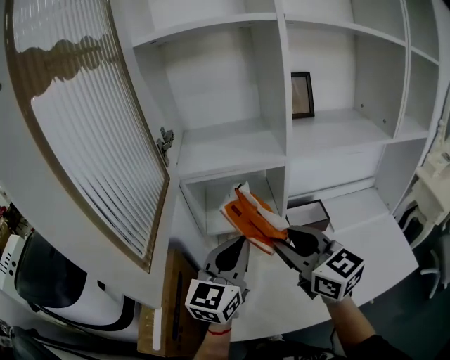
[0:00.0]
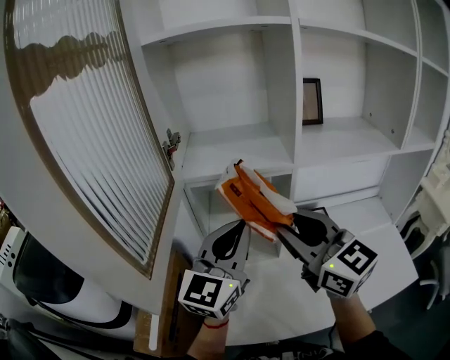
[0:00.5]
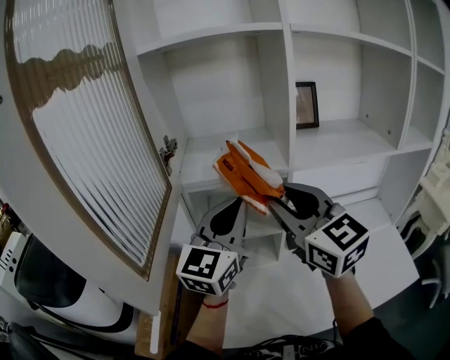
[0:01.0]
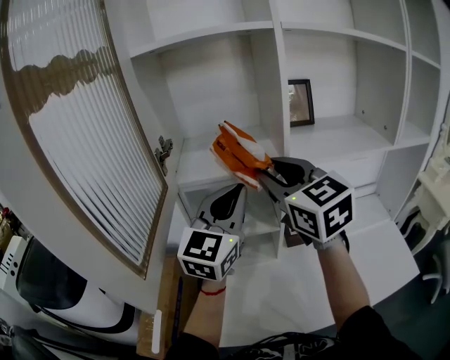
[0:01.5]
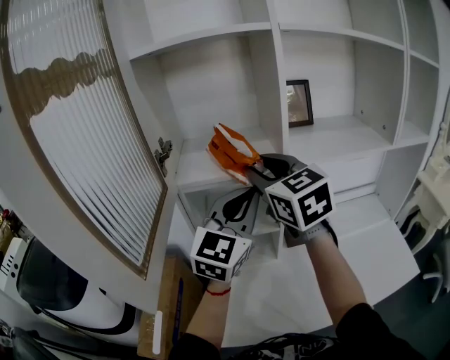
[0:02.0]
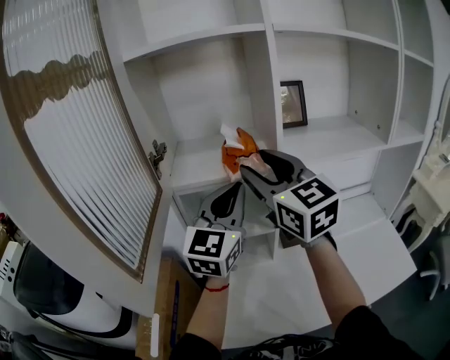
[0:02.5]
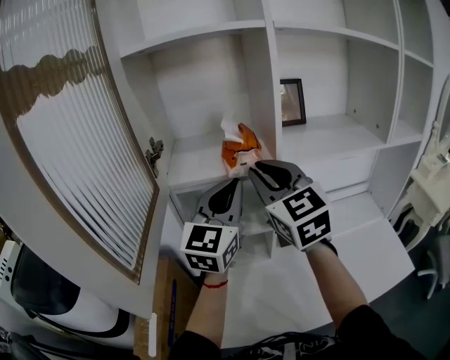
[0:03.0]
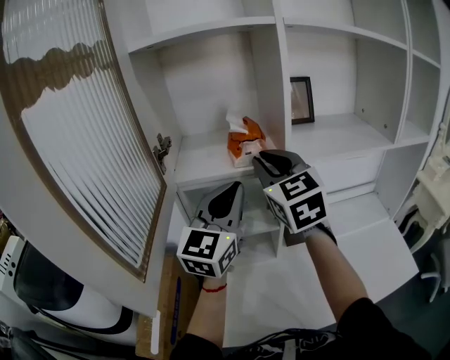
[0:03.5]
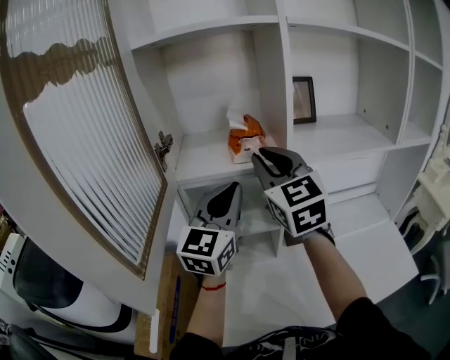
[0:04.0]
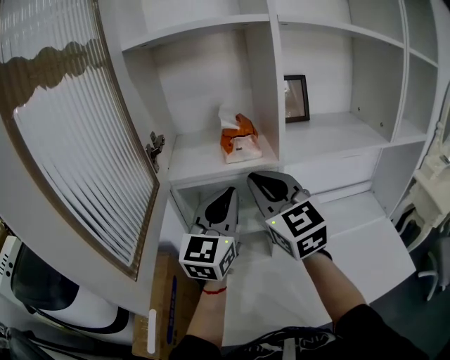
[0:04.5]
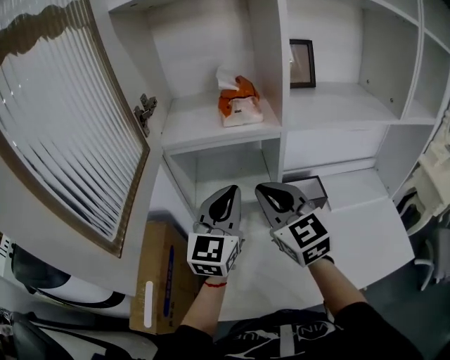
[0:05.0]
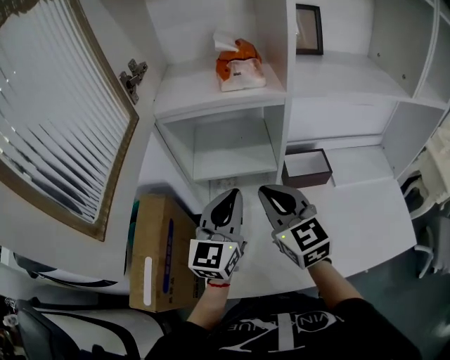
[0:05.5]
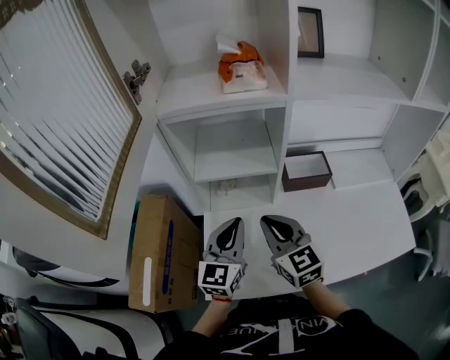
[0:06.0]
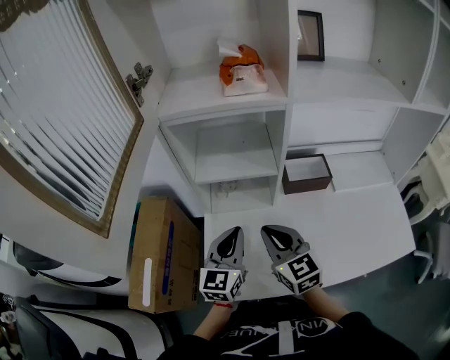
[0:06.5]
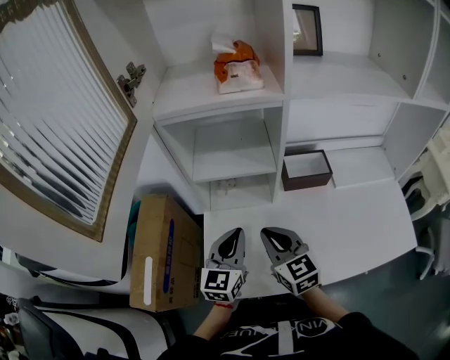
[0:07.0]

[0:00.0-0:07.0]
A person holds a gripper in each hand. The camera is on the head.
0:00.0 to 0:02.0: The left gripper moves upward, forward and to the right, about 15 cm. The right gripper moves forward and upward, some 20 cm.
0:02.0 to 0:03.5: The grippers stay close to where they were, moving slightly.
0:03.5 to 0:05.0: The left gripper goes approximately 10 cm downward. The right gripper goes approximately 15 cm downward and backward.
0:05.0 to 0:07.0: The two grippers go some 20 cm downward and backward.

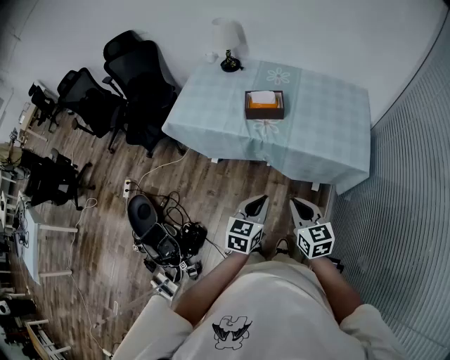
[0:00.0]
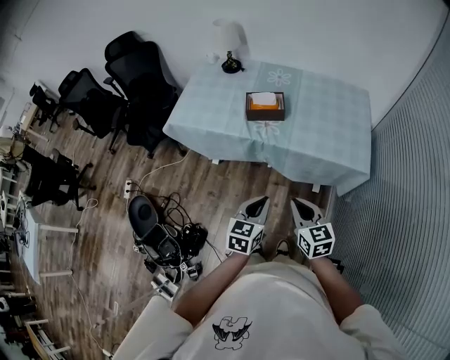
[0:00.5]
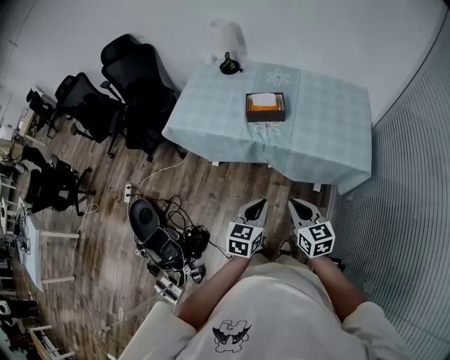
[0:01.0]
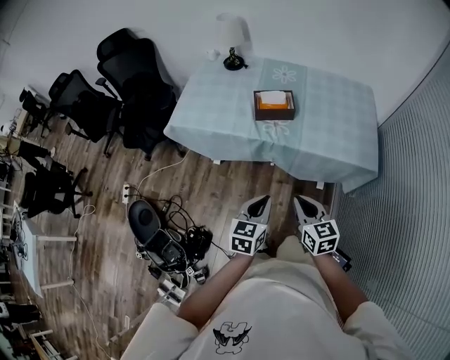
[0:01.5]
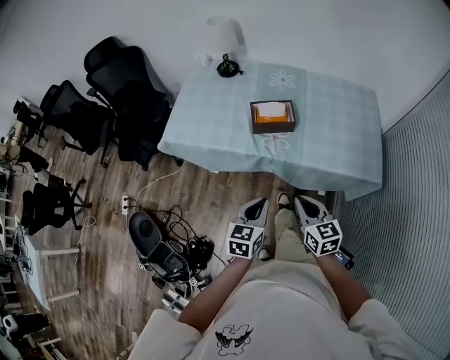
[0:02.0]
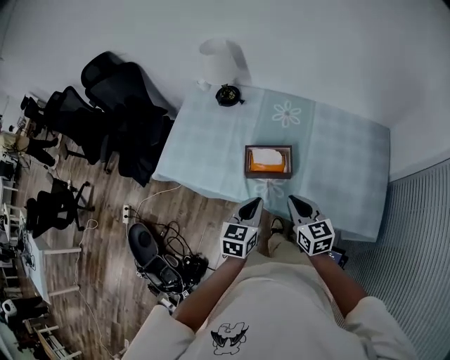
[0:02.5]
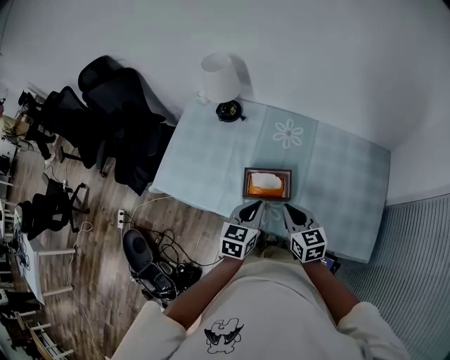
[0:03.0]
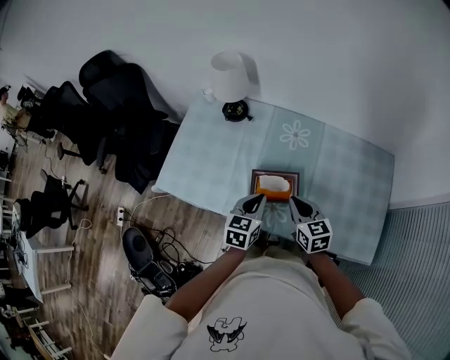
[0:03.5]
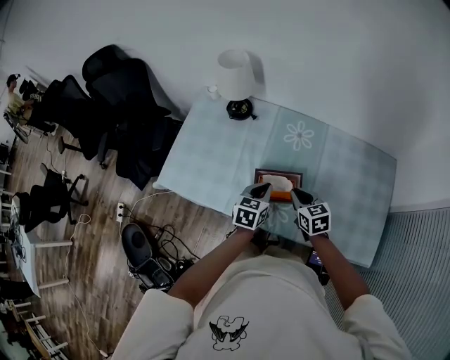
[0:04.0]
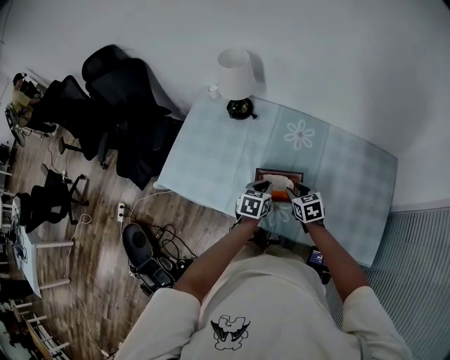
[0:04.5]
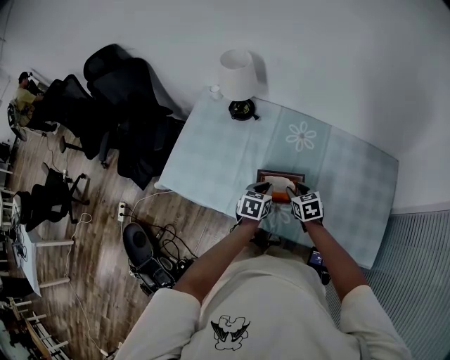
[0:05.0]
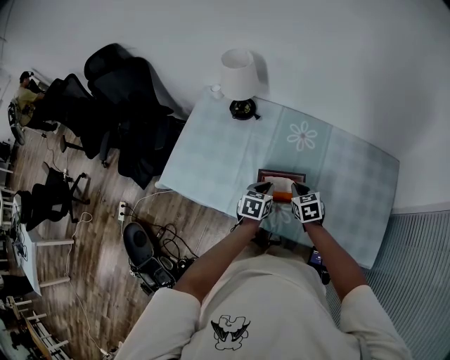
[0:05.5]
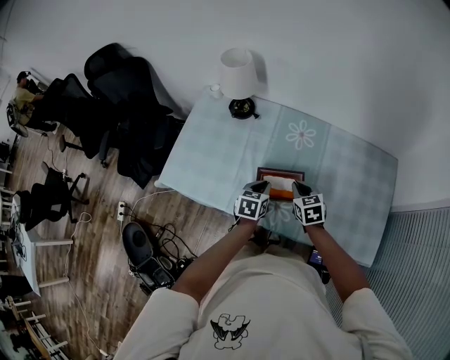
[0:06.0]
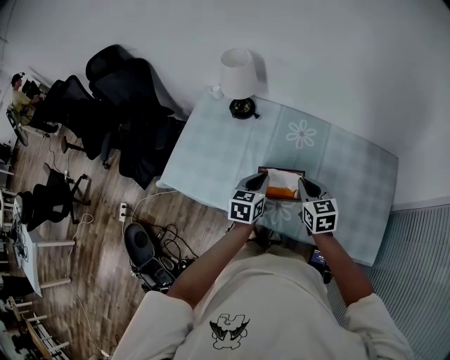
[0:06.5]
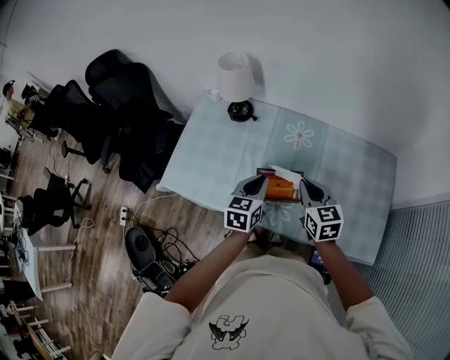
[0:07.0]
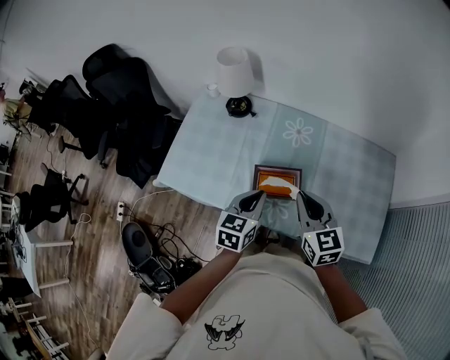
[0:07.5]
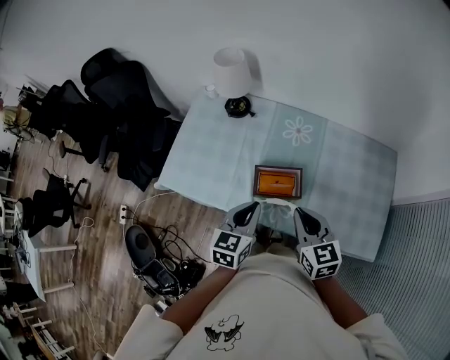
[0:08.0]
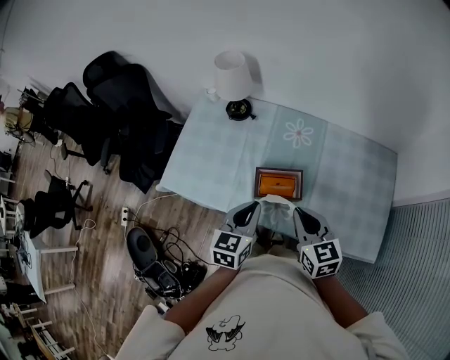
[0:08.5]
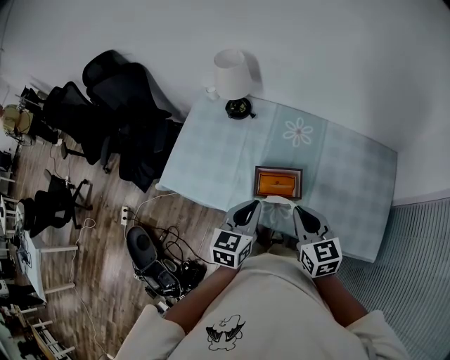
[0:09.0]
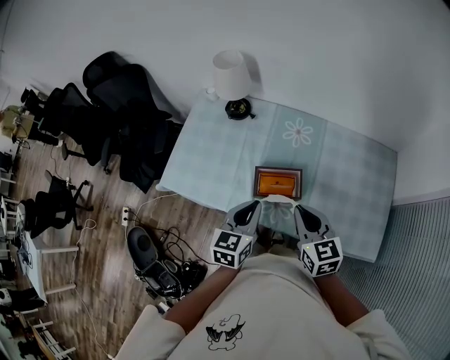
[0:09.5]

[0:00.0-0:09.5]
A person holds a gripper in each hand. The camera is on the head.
0:00.0 to 0:02.0: Both grippers travel together forward and to the left, about 15 cm.
0:02.0 to 0:04.0: The grippers both shift forward by about 35 cm.
0:04.0 to 0:05.5: Both grippers move downward, some 5 cm. The right gripper opens, then closes again.
0:05.5 to 0:07.5: The left gripper moves upward and backward, approximately 15 cm. The right gripper is displaced upward by roughly 20 cm, and changes its angle by some 30 degrees.
0:07.5 to 0:09.5: There are only small adjustments of the grippers.

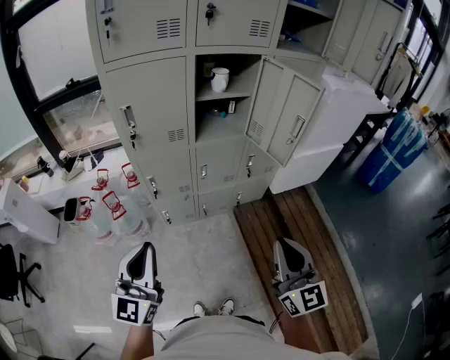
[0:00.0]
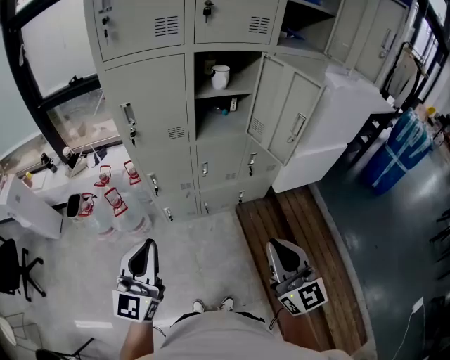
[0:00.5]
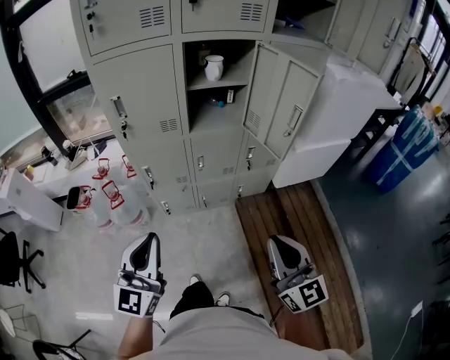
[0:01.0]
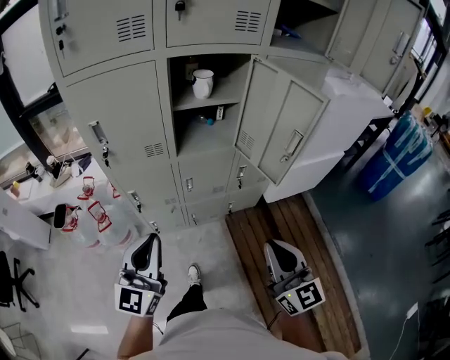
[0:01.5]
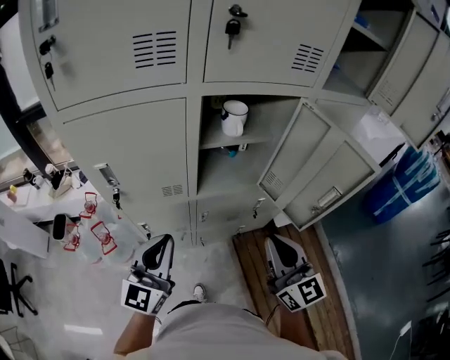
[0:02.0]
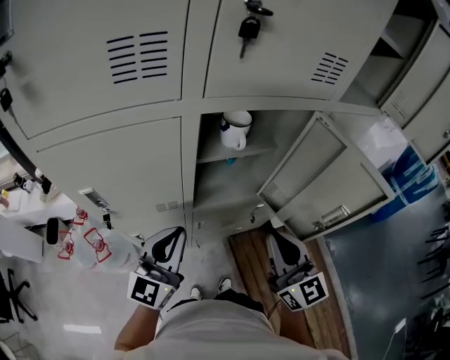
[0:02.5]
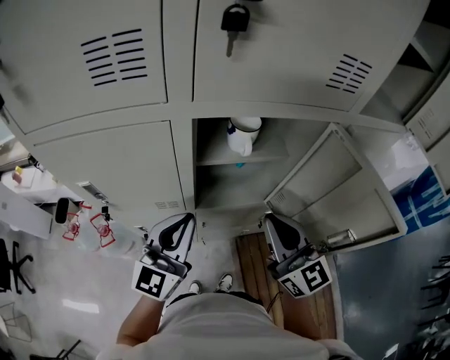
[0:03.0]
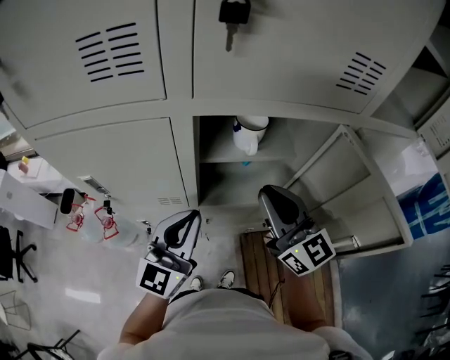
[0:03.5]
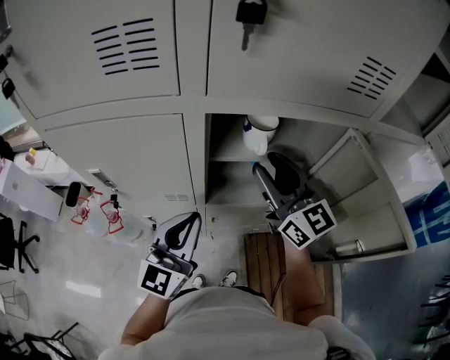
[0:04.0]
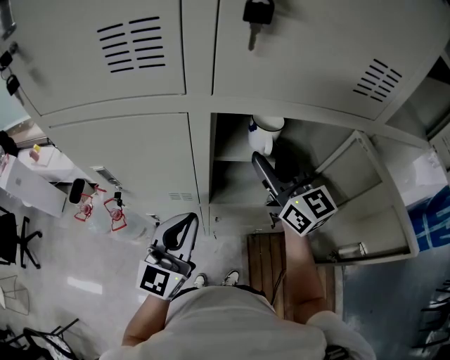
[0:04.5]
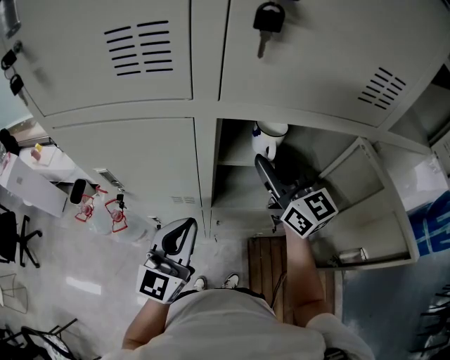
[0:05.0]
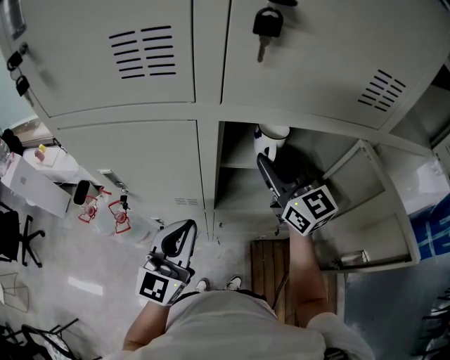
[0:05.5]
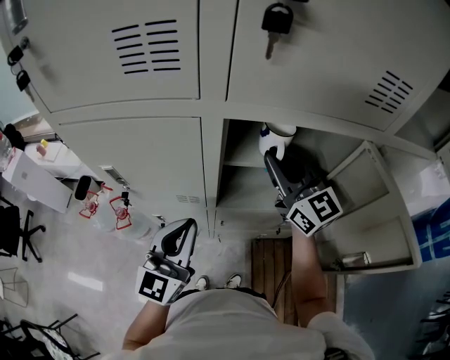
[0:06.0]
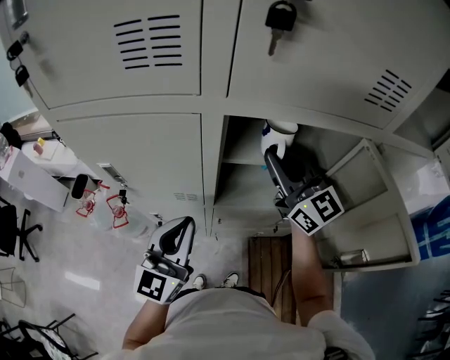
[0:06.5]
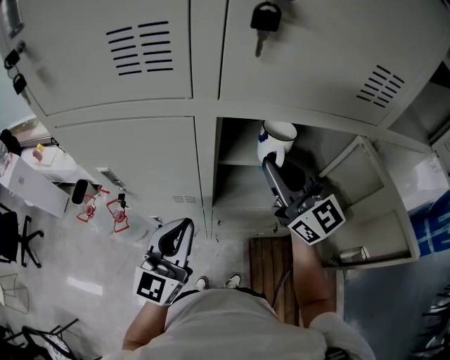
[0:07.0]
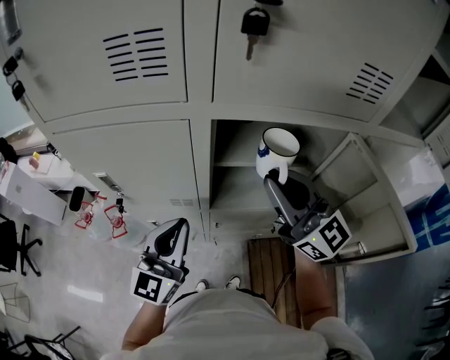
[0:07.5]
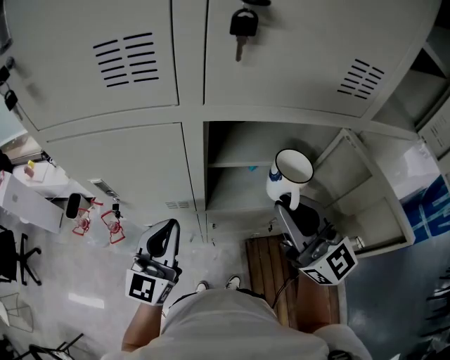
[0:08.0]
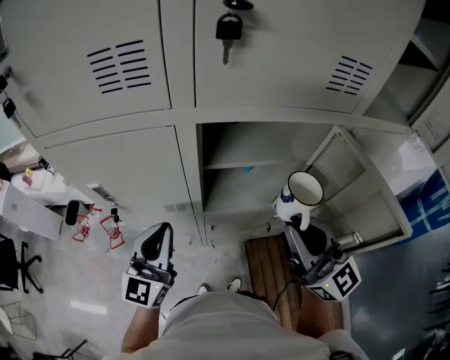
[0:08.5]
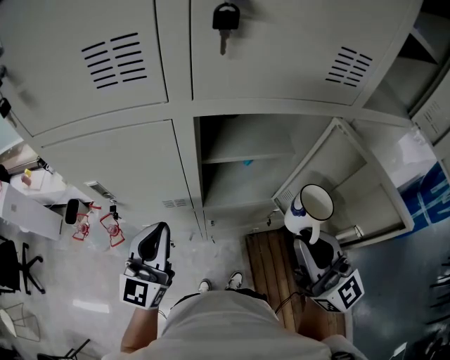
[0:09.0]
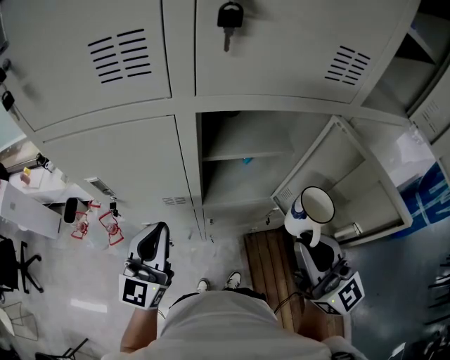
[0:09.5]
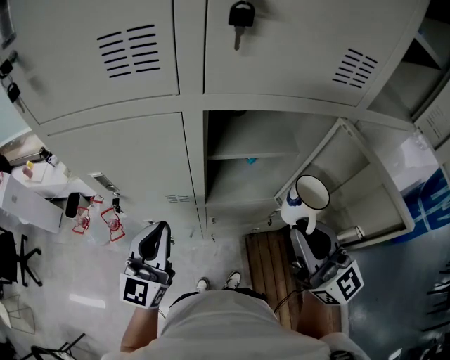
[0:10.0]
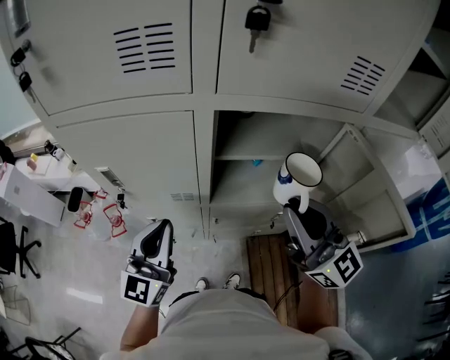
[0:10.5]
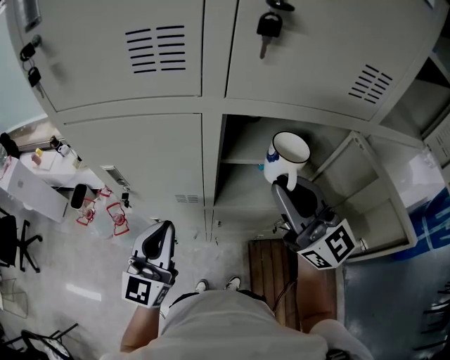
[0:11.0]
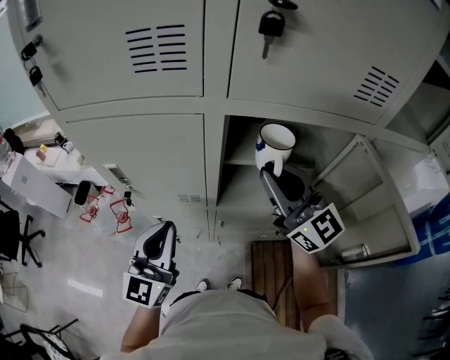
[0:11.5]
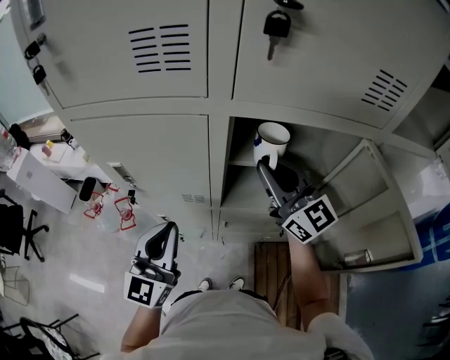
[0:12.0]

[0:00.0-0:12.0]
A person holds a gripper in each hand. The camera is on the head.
0:00.0 to 0:02.0: Both grippers move forward, about 30 cm.
0:02.0 to 0:04.0: The left gripper goes about 15 cm forward and to the right. Meanwhile the right gripper shifts about 25 cm forward, turns by some 20 degrees, and opens.
0:04.0 to 0:06.0: The right gripper closes.
0:06.0 to 0:08.0: The right gripper travels backward by some 15 cm.
0:08.0 to 0:10.0: The right gripper travels backward by roughly 5 cm.
0:10.0 to 0:12.0: The right gripper heads forward, covering roughly 20 cm.
